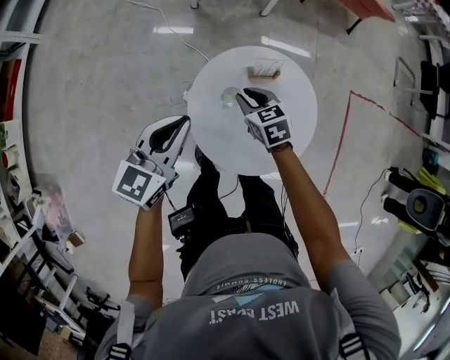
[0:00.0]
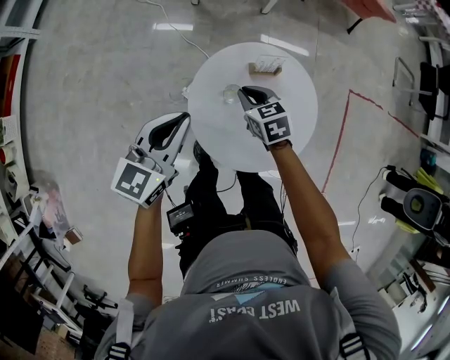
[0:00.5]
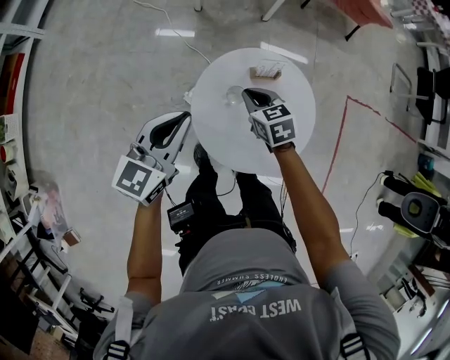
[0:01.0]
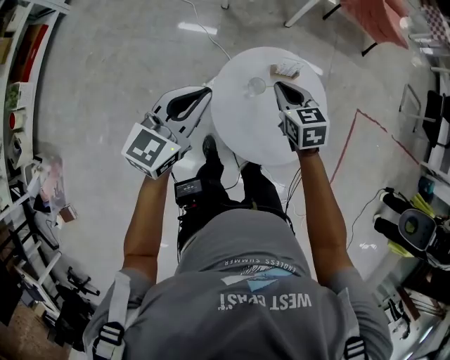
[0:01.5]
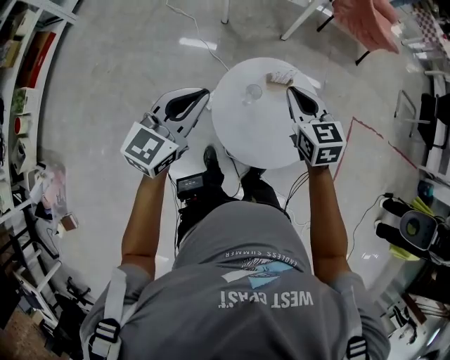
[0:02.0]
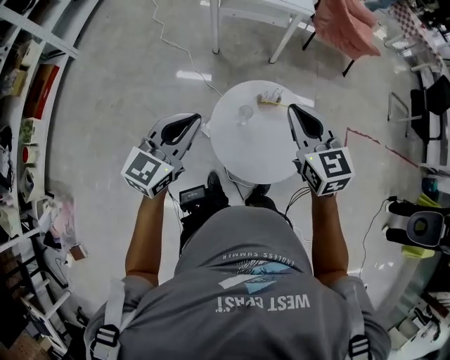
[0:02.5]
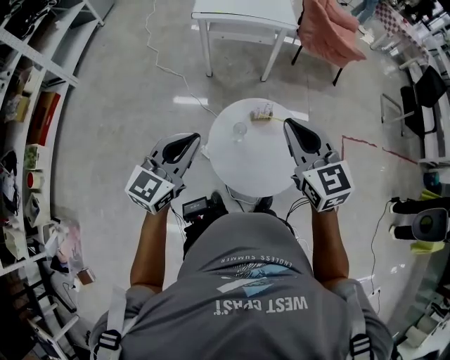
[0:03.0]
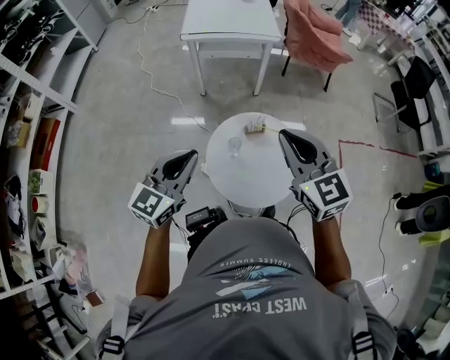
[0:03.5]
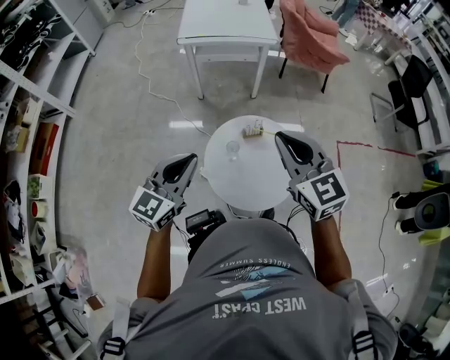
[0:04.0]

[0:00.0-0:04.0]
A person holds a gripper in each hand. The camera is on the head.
0:00.0 to 0:02.0: The left gripper shifts some 10 cm upward. The right gripper shifts about 20 cm upward.
0:02.0 to 0:04.0: The right gripper travels upward and backward by about 20 cm; the left gripper ends up approximately 5 cm from where it was.

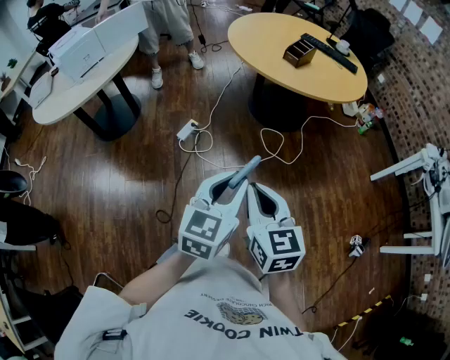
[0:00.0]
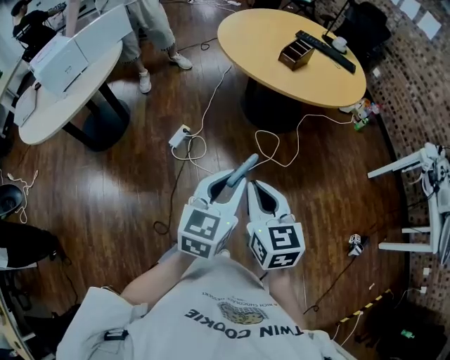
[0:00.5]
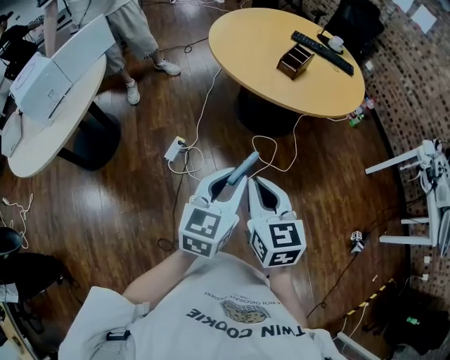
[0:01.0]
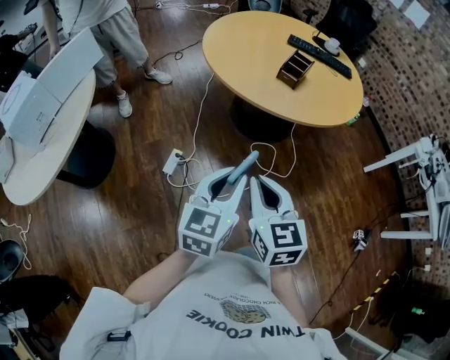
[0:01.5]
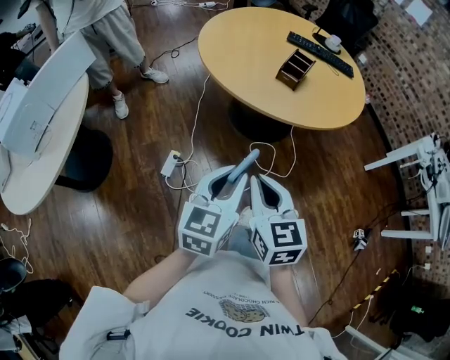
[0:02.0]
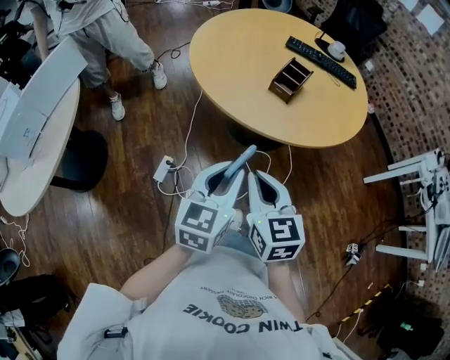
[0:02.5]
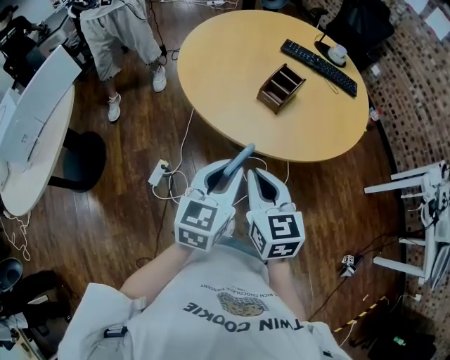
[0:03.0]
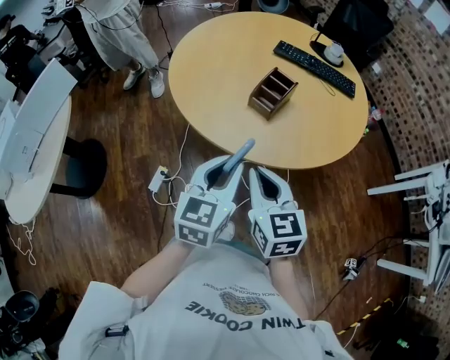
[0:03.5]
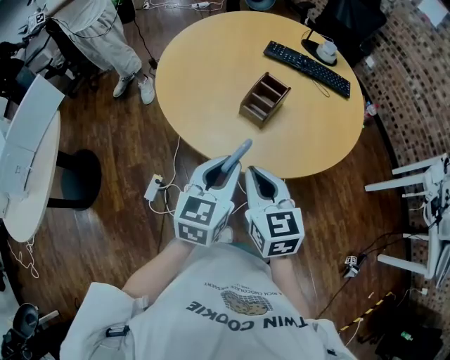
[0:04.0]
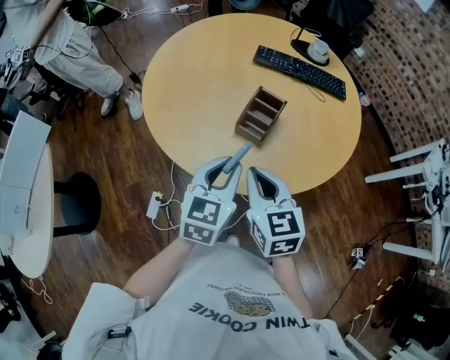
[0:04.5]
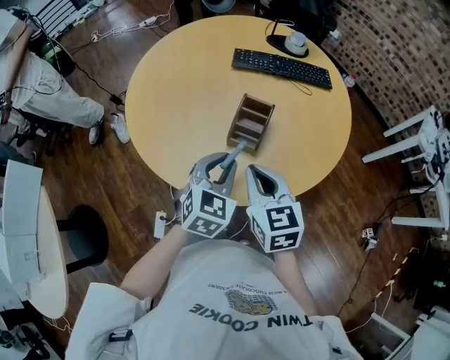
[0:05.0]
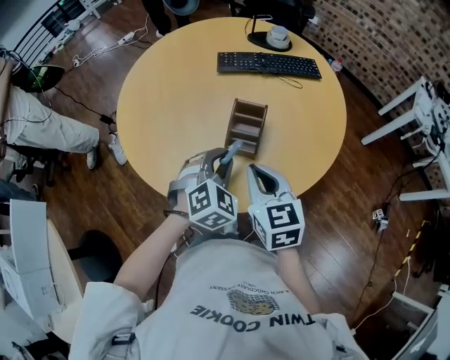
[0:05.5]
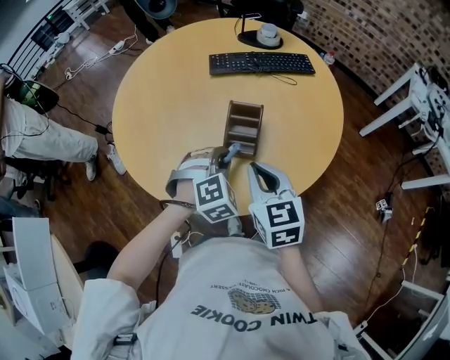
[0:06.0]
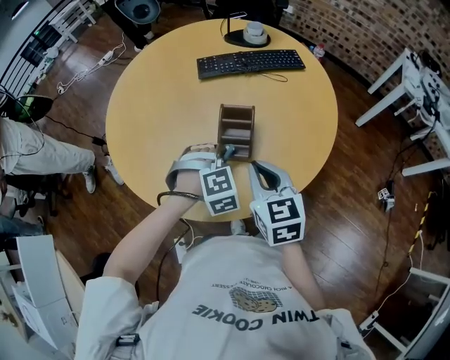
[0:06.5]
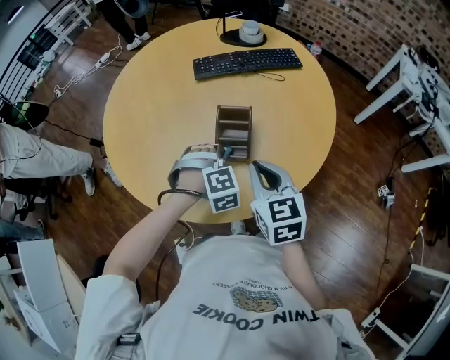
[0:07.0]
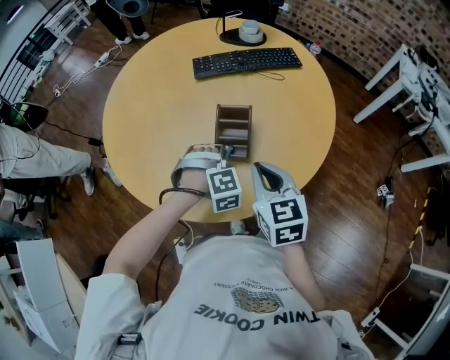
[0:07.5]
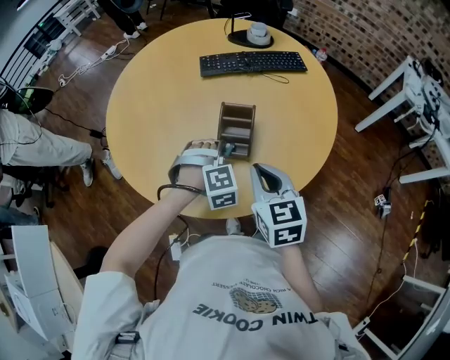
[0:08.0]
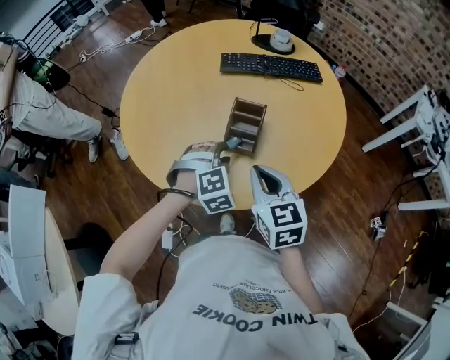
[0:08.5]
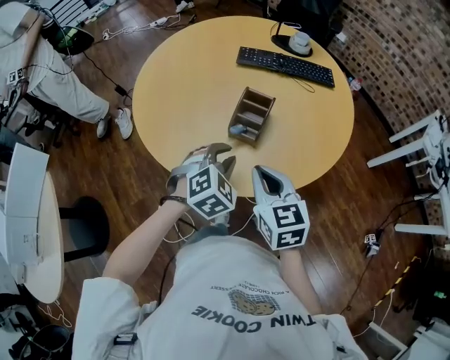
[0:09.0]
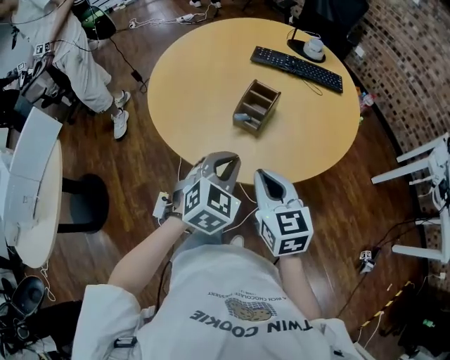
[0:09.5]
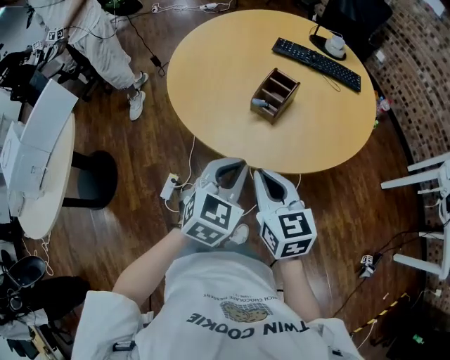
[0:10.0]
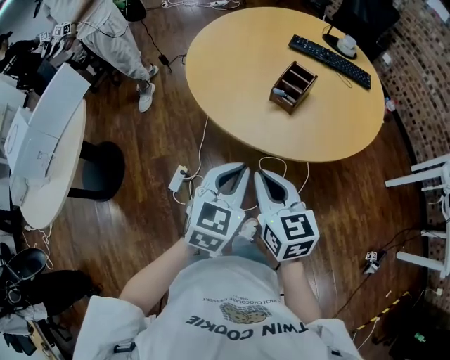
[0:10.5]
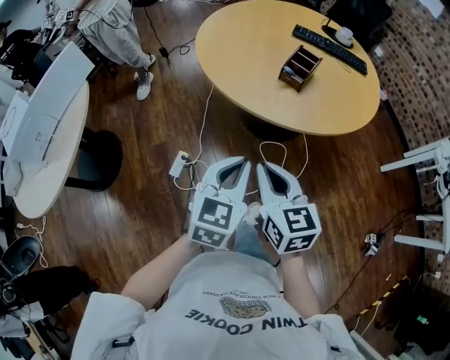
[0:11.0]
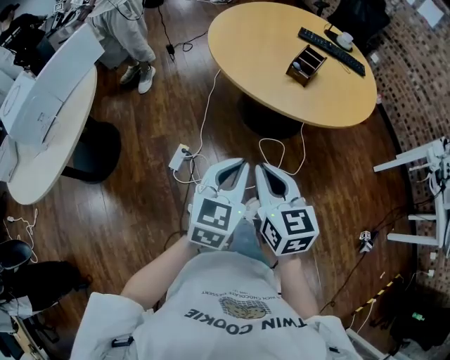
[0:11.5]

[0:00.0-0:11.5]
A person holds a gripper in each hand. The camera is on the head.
0:00.0 to 0:02.0: Both grippers travel together forward, roughly 35 cm.
0:02.0 to 0:04.0: Both grippers move forward and to the right, approximately 30 cm.
0:04.0 to 0:06.0: The right gripper shifts some 15 cm forward, and changes its angle by some 20 degrees, while the left gripper heads forward and downward, covering roughly 20 cm, and rolls clockwise, seen from behind, by roughly 80 degrees.
0:06.0 to 0:07.5: The left gripper is displaced downward by about 5 cm, and rotates roughly 20 degrees.
0:07.5 to 0:09.5: The right gripper is displaced backward by roughly 15 cm, and turns by about 30 degrees, while the left gripper moves backward and upward, approximately 20 cm, and rotates around the line of its fingers by about 60 degrees, counterclockwise from behind.
0:09.5 to 0:11.5: The two grippers go about 35 cm backward and to the left. The left gripper turns by about 30 degrees.

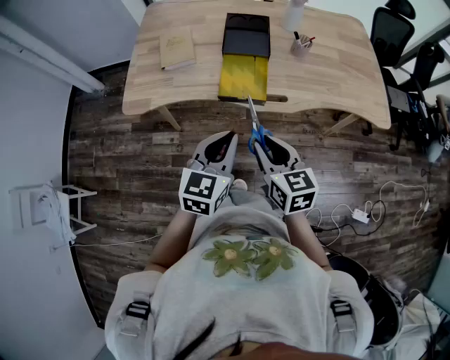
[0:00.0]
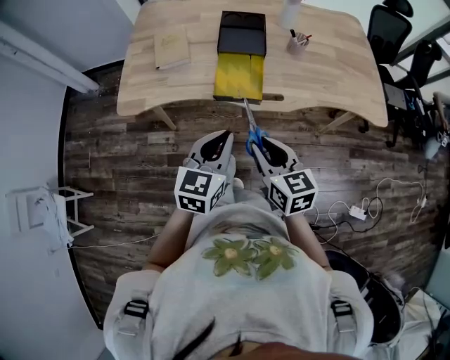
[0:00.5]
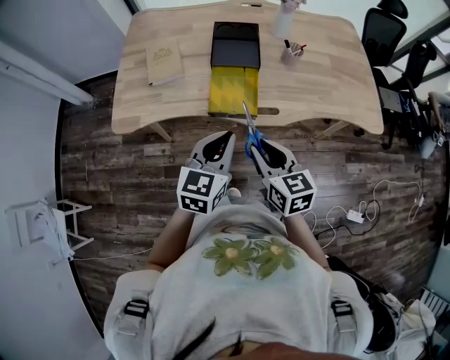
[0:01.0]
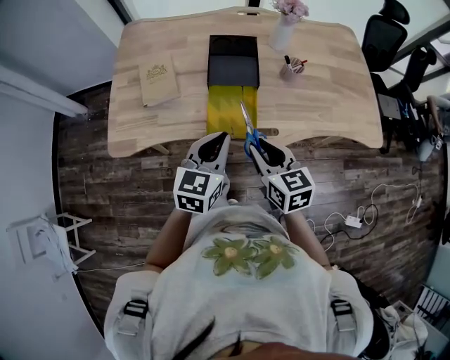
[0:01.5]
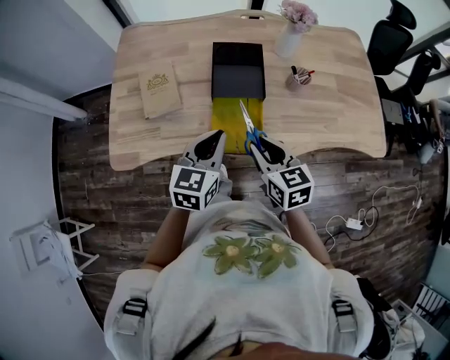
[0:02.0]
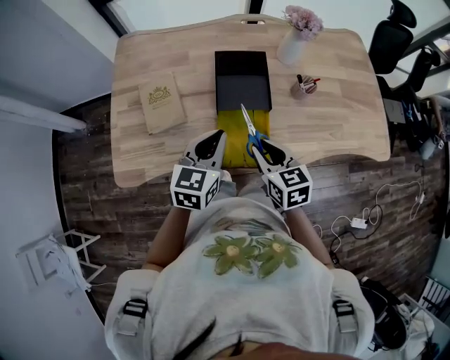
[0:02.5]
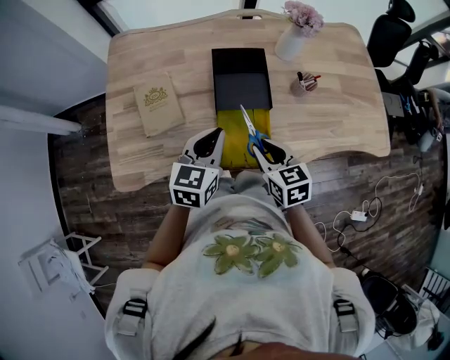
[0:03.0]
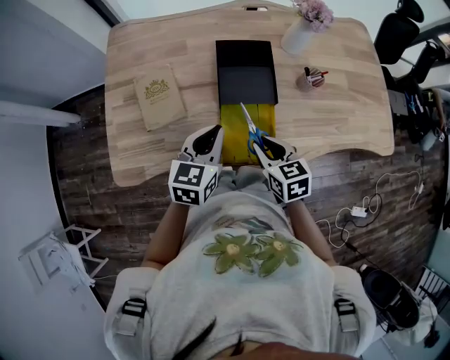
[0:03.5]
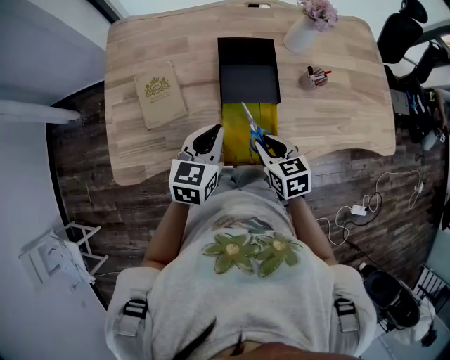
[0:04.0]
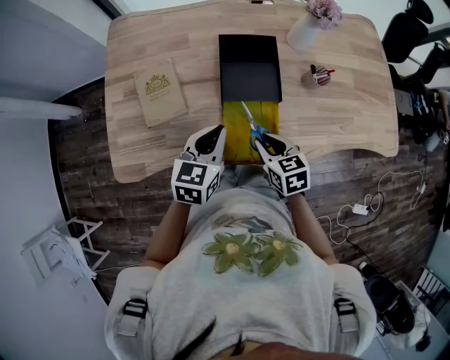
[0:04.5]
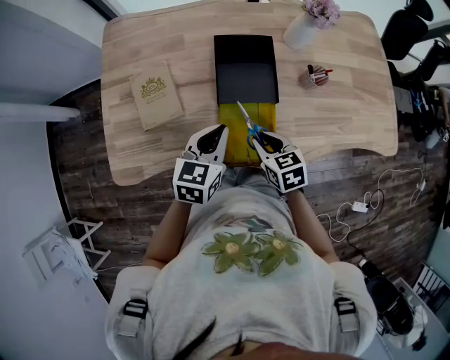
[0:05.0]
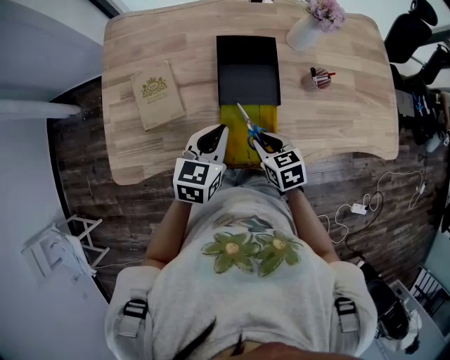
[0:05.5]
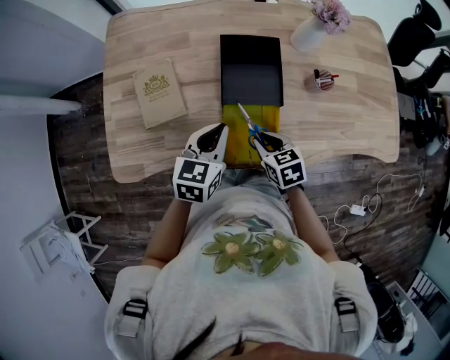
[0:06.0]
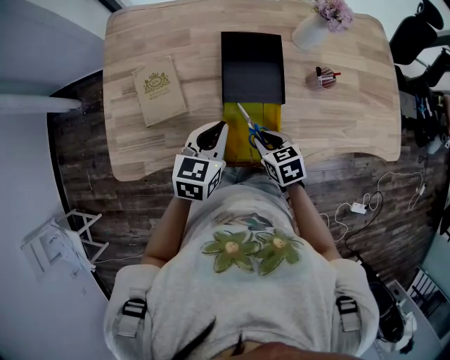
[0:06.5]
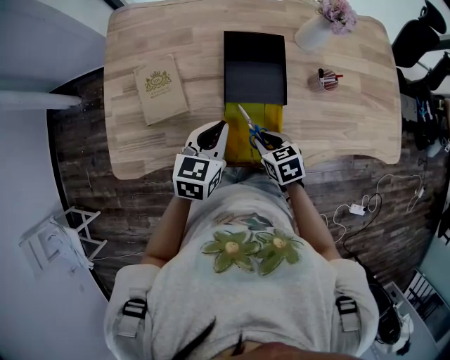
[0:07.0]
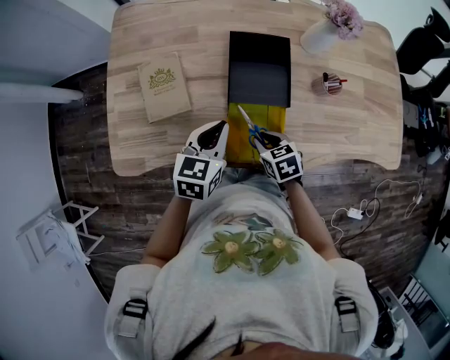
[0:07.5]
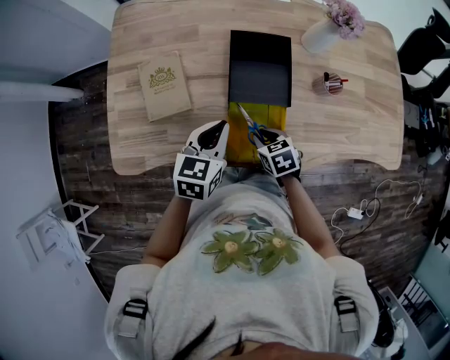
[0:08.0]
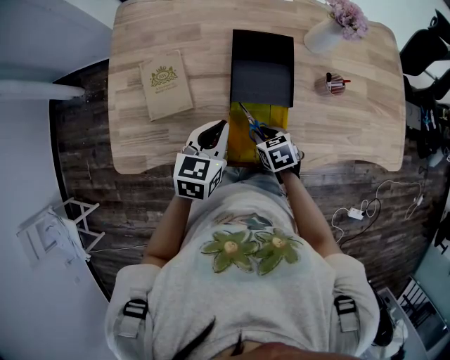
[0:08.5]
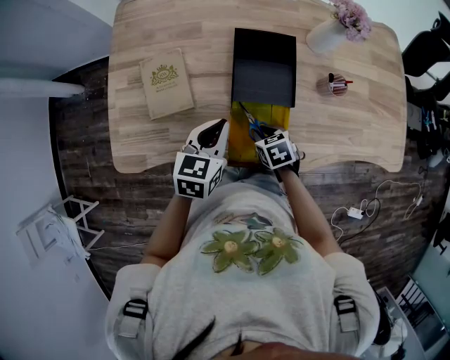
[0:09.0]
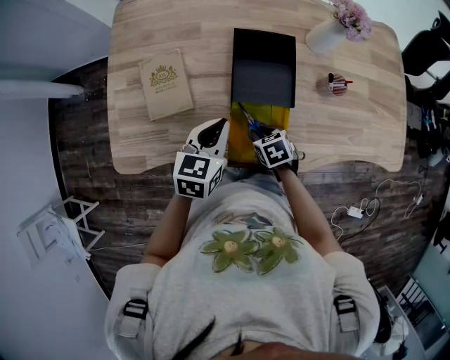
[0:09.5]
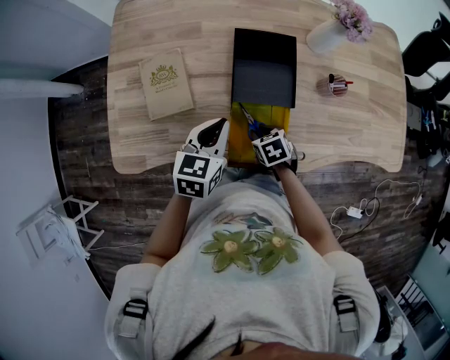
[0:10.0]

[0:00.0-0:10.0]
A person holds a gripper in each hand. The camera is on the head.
0:00.0 to 0:02.0: Both grippers move forward, approximately 25 cm.
0:02.0 to 0:04.0: The left gripper is displaced forward and downward by about 10 cm, while the right gripper goes some 10 cm downward and forward.
0:04.0 to 0:06.0: The right gripper shifts by some 5 cm.
0:06.0 to 0:08.0: The right gripper travels downward by roughly 5 cm.
0:08.0 to 0:10.0: The grippers move only a little.

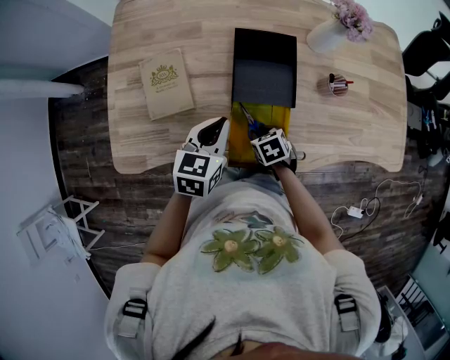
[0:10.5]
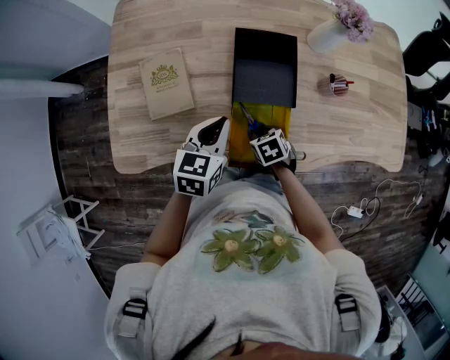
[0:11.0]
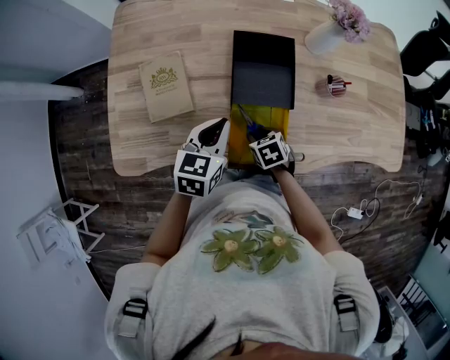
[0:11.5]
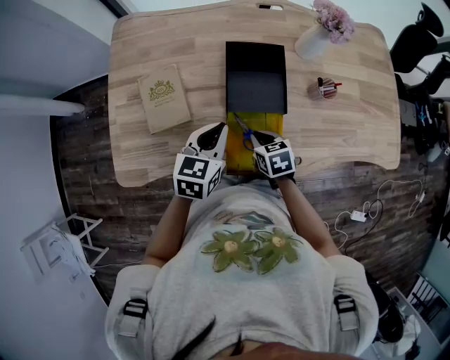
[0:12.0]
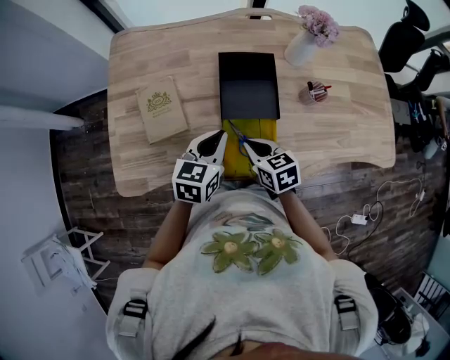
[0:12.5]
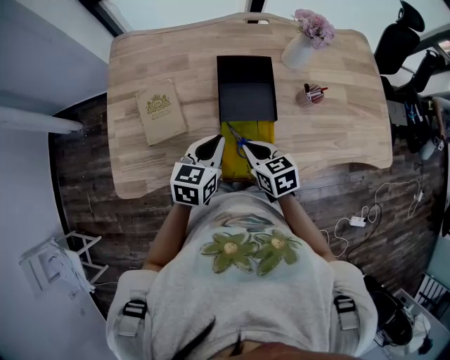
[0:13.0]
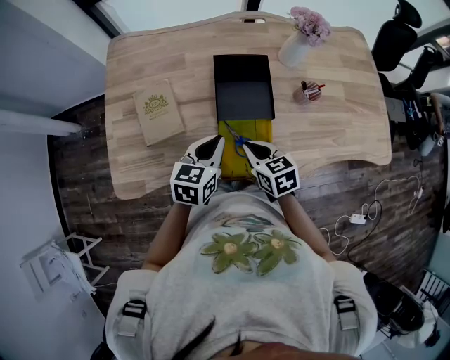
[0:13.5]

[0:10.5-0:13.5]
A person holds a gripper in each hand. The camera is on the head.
0:10.5 to 0:12.0: The right gripper heads upward, covering about 5 cm.
0:12.0 to 0:13.5: The right gripper shifts roughly 10 cm upward.
